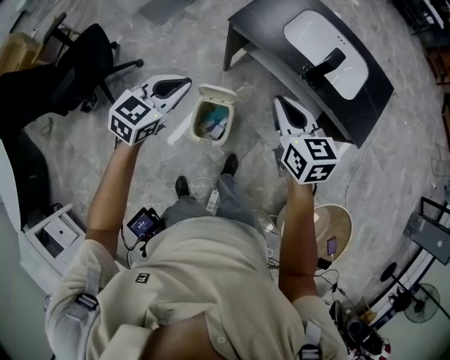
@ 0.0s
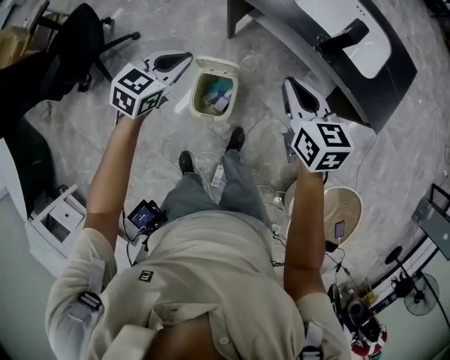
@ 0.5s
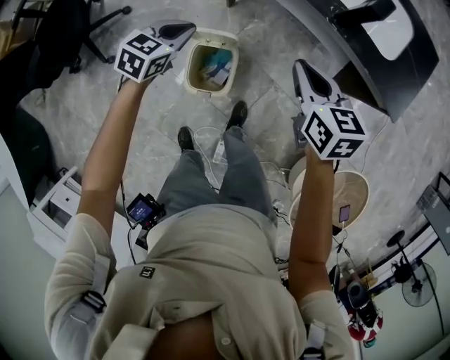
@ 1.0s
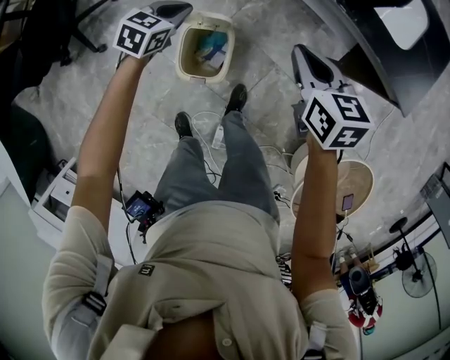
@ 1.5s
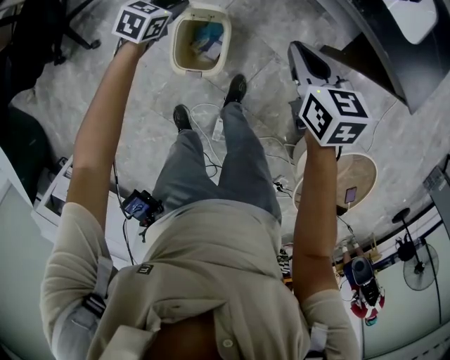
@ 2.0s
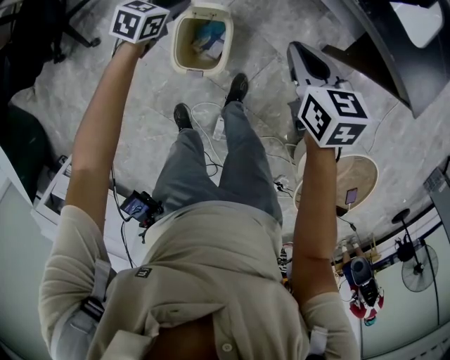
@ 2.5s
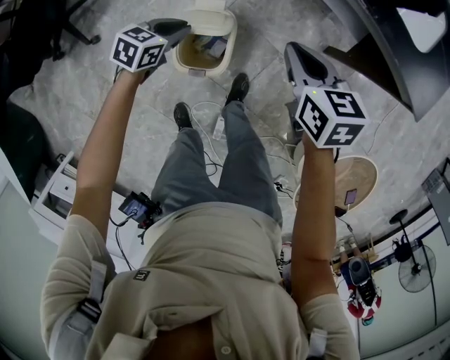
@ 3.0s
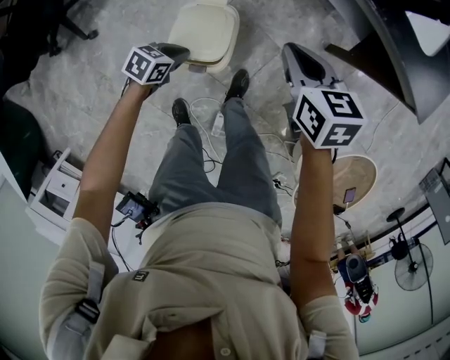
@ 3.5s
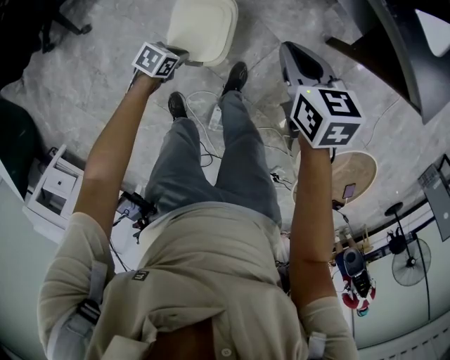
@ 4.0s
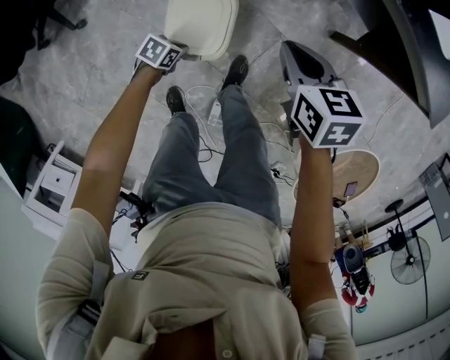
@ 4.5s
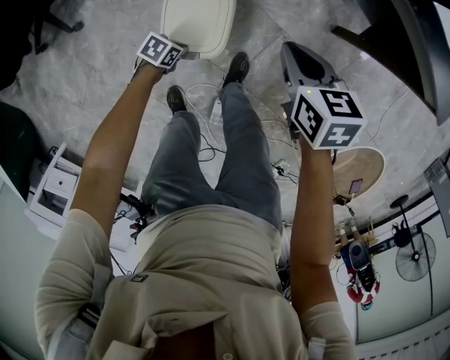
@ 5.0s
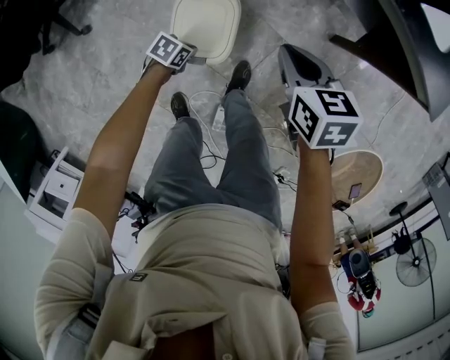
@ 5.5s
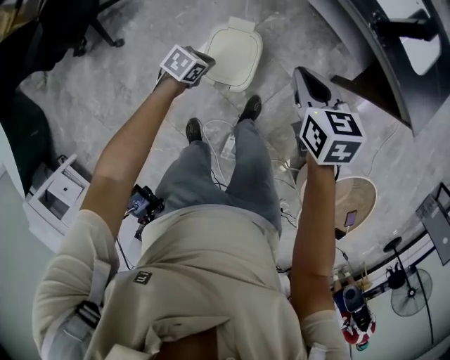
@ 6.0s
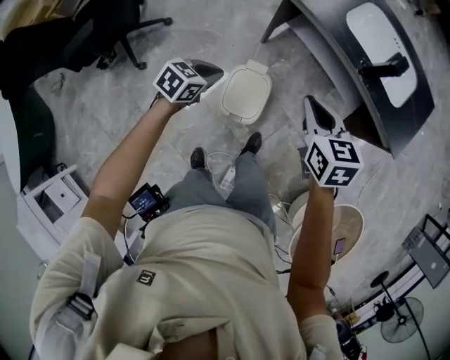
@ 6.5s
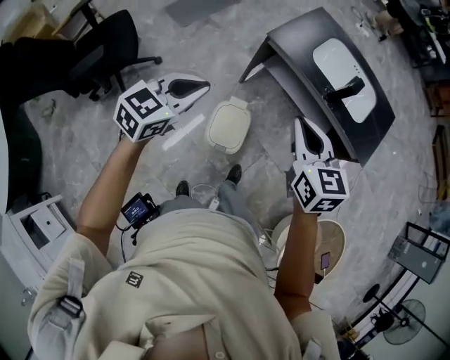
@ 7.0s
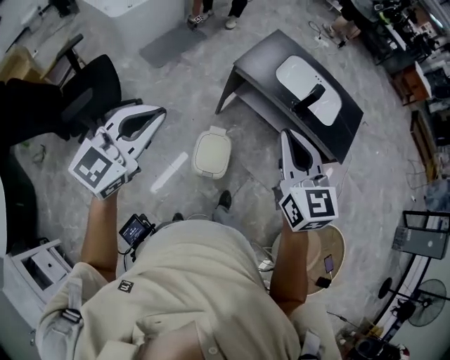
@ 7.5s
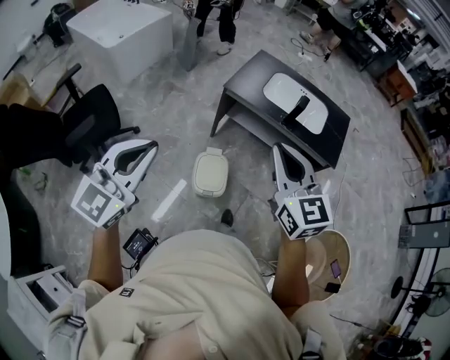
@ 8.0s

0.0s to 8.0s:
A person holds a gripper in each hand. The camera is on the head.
0.0s to 2.0s: The grippers both shift downward by some 30 cm. The left gripper turns by about 30 degrees.
2.0s to 4.0s: The right gripper travels downward by approximately 5 cm. The left gripper moves approximately 30 cm, and changes its angle by roughly 30 degrees.
4.0s to 6.0s: The two grippers go approximately 10 cm upward.
6.0s to 8.0s: The left gripper moves upward, approximately 70 cm, and tilts its fingers roughly 50 degrees upward. The right gripper moves upward, some 40 cm, and angles its fingers upward, by some 40 degrees.

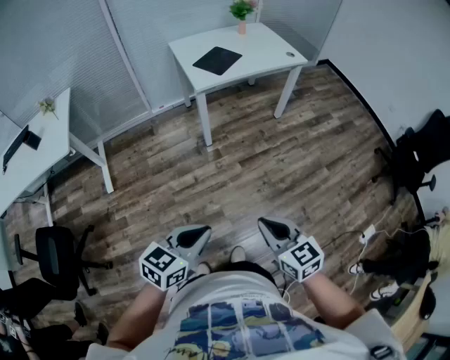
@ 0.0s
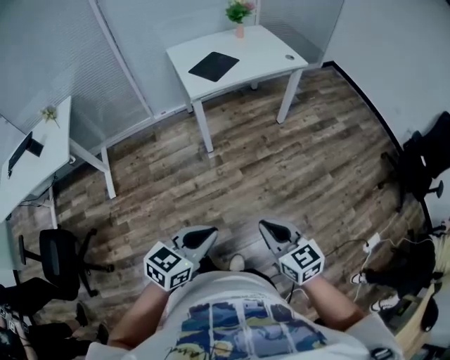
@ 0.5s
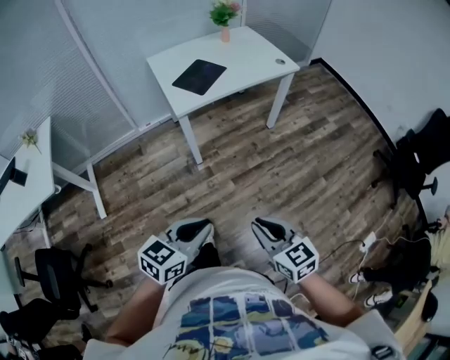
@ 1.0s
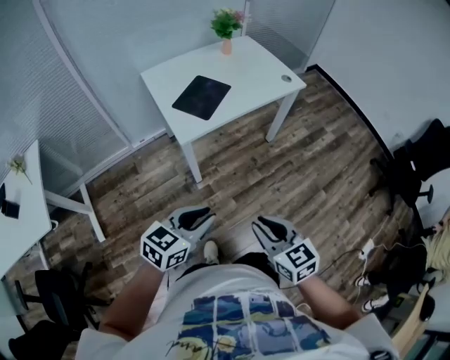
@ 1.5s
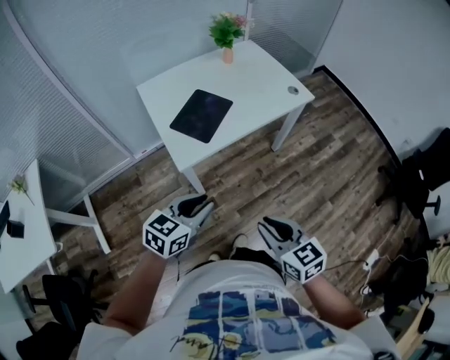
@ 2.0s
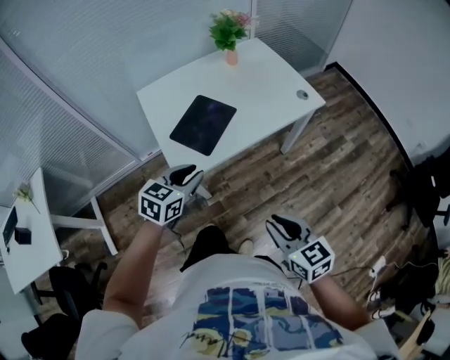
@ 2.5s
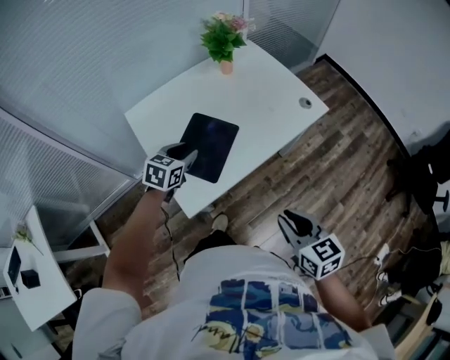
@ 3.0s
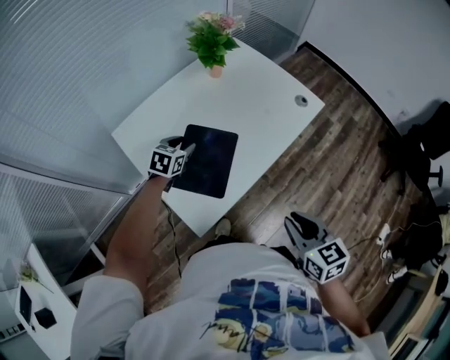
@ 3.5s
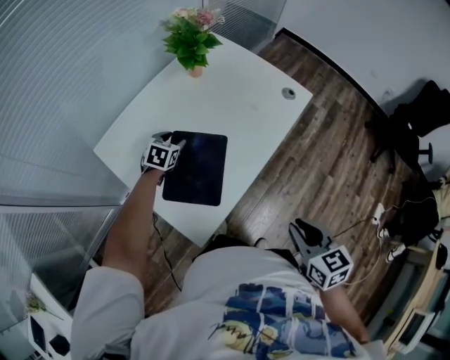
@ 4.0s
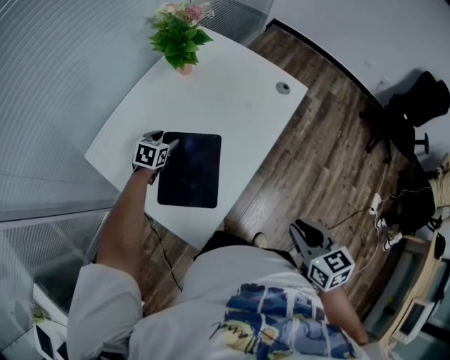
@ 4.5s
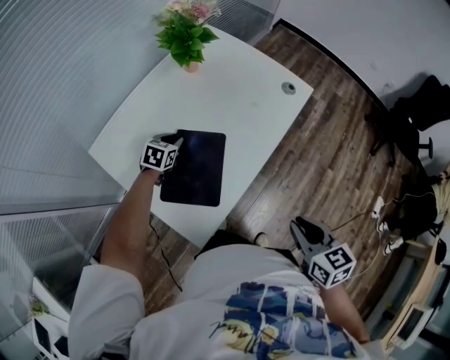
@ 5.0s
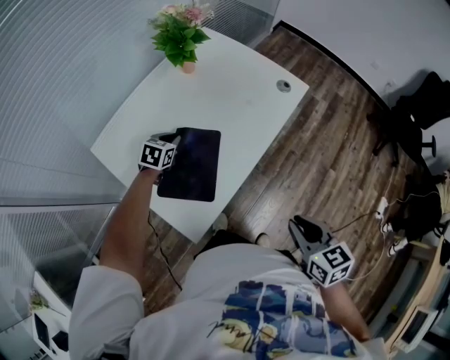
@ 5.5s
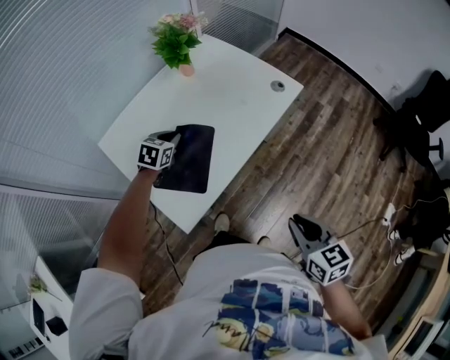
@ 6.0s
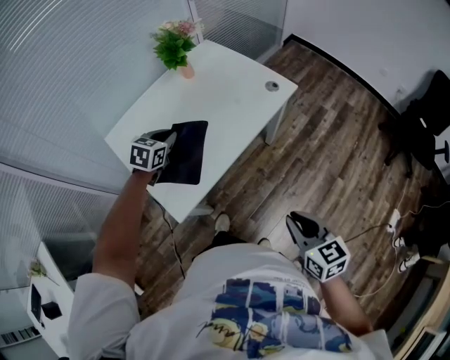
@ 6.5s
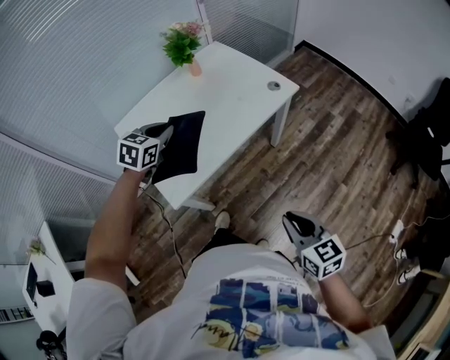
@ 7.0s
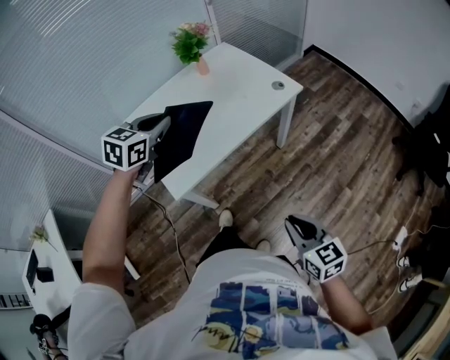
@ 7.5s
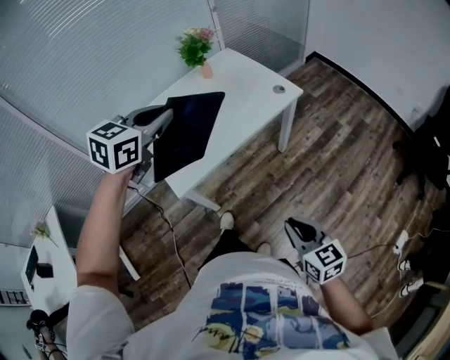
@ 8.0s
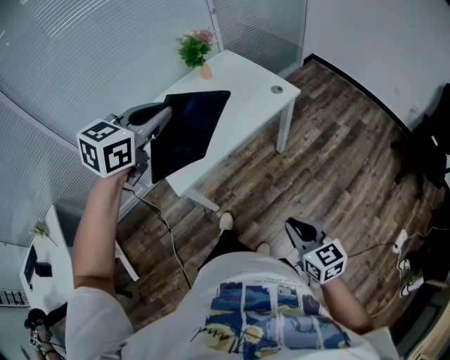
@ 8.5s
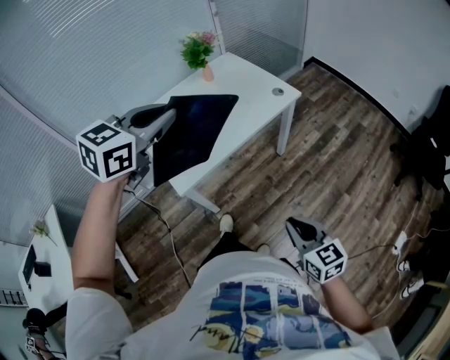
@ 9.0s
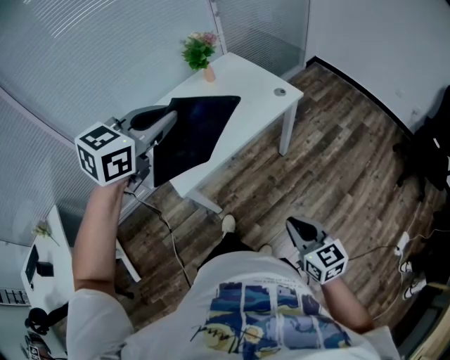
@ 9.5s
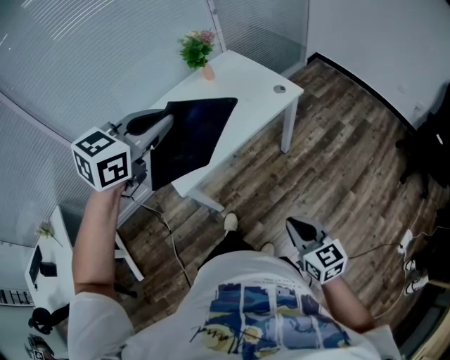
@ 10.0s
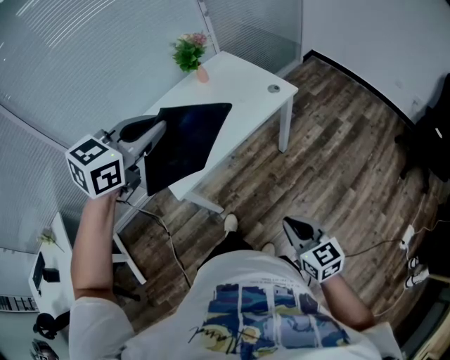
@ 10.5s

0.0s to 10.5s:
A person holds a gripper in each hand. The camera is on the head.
0.0s to 2.0s: Both grippers are carried forward, some 50 cm.
2.0s to 4.0s: The left gripper travels forward and downward by roughly 60 cm, rotates some 30 degrees, and opens up; the right gripper moves forward, some 25 cm, and swivels roughly 30 degrees.
4.0s to 6.5s: The left gripper is displaced upward, backward and to the right by roughly 20 cm, and closes. The right gripper travels to the right and backward by some 15 cm.
6.5s to 8.5s: The right gripper travels backward by roughly 10 cm, while the left gripper moves upward and backward, some 35 cm.
8.5s to 10.5s: The grippers stay close to where they were, moving slightly.

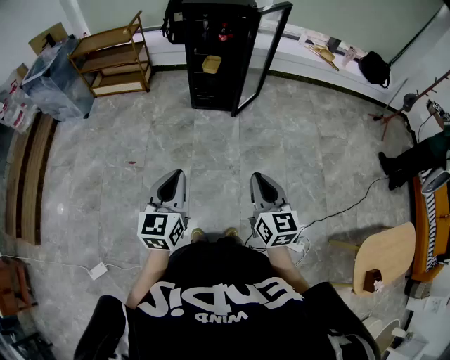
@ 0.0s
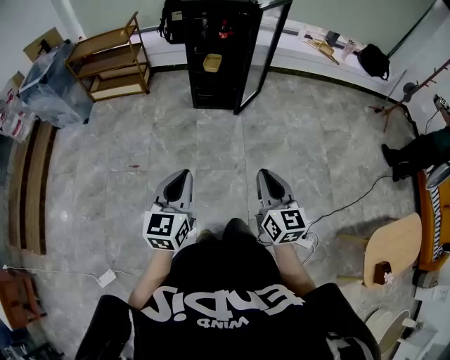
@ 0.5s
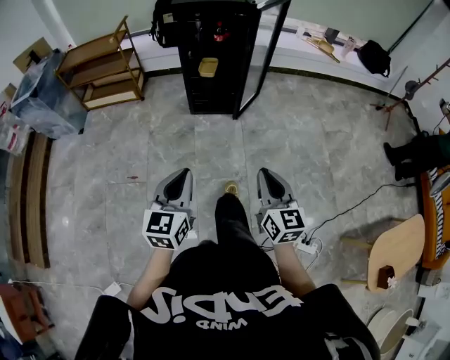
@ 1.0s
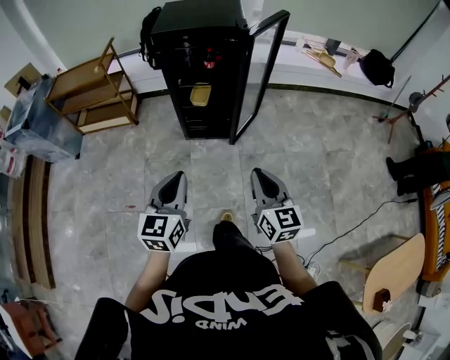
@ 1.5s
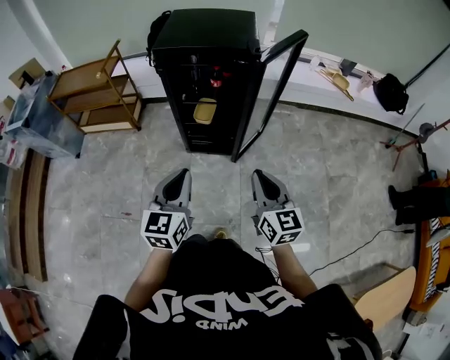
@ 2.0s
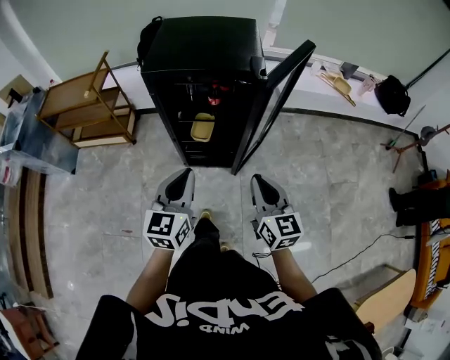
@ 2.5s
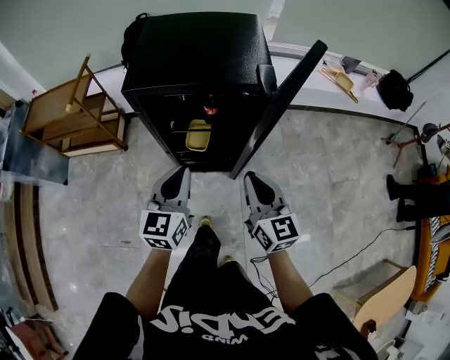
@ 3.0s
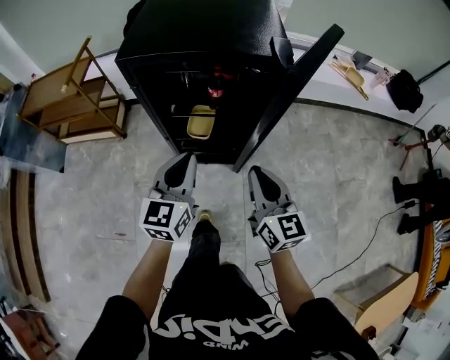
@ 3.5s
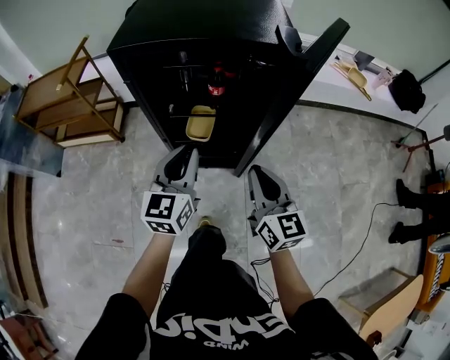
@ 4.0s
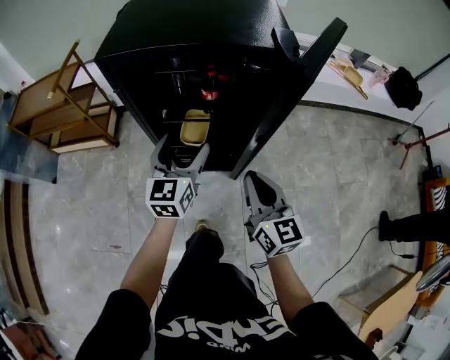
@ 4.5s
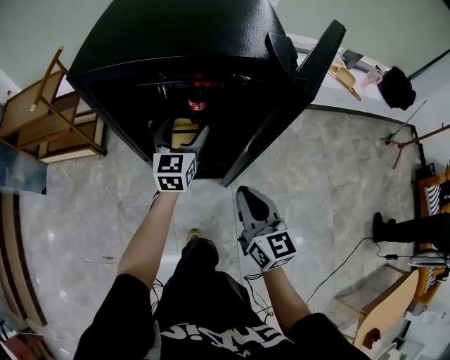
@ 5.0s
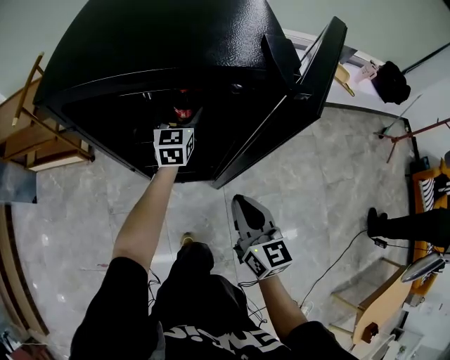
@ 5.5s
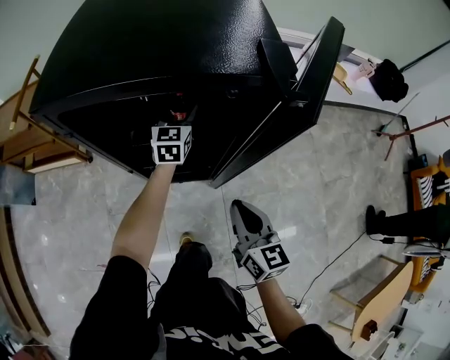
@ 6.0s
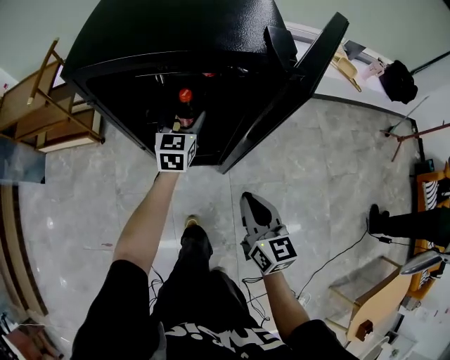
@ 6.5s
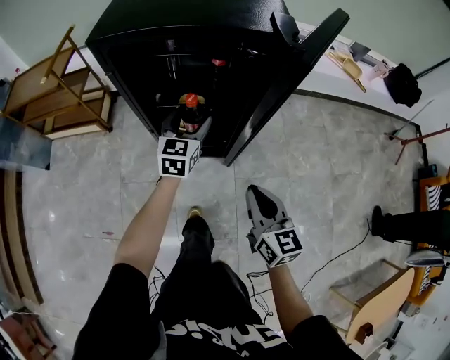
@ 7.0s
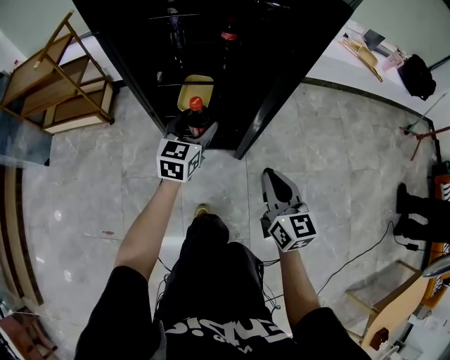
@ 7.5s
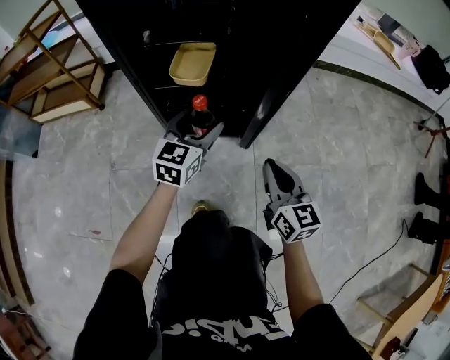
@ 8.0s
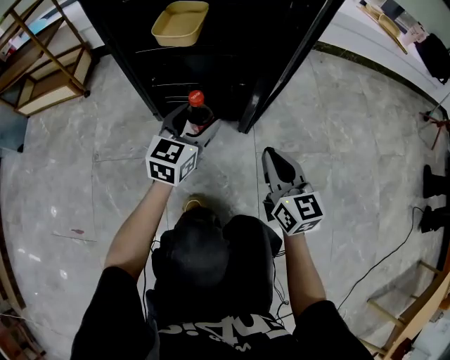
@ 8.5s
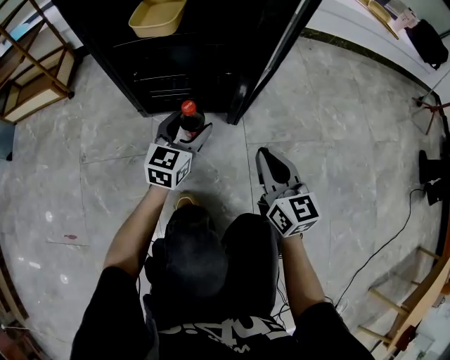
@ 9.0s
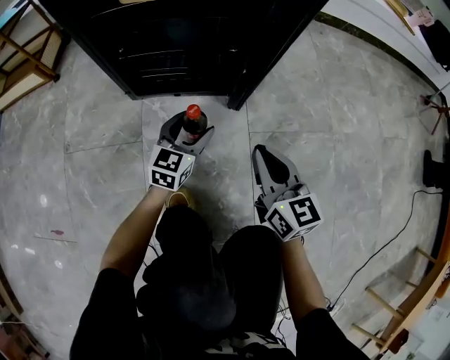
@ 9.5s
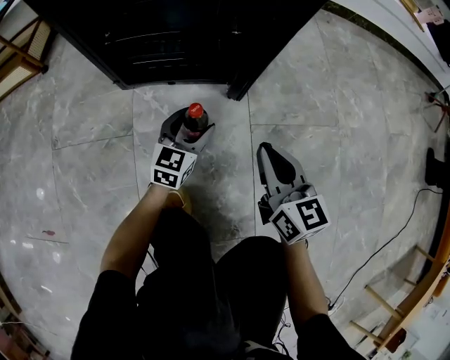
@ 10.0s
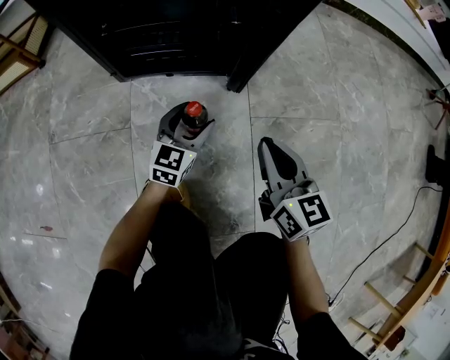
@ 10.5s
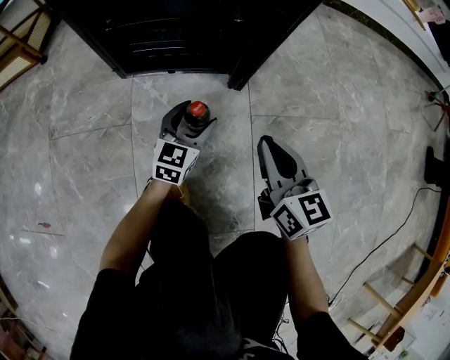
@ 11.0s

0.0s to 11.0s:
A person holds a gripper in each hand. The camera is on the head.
0.0s to 2.0s: The two grippers travel together, forward, about 50 cm.
2.0s to 3.5s: The left gripper heads forward, covering approximately 25 cm. The right gripper shifts some 25 cm forward and downward.
3.5s to 5.5s: The left gripper moves forward and downward, about 35 cm, and opens its fingers, while the right gripper travels downward and forward by about 15 cm.
5.5s to 7.5s: The right gripper moves downward and backward, approximately 15 cm. Meanwhile the left gripper is displaced backward and downward by approximately 20 cm.
7.5s to 9.0s: Both grippers travel together downward, approximately 35 cm.
9.0s to 11.0s: The right gripper is displaced downward by about 10 cm, while the left gripper moves downward, approximately 20 cm.
